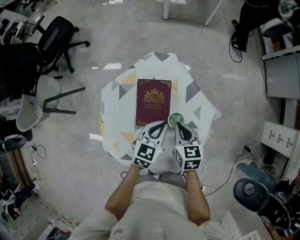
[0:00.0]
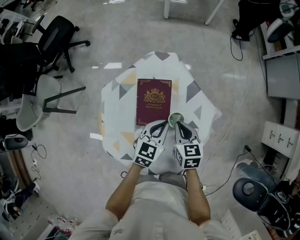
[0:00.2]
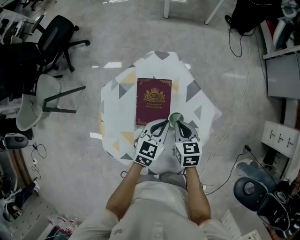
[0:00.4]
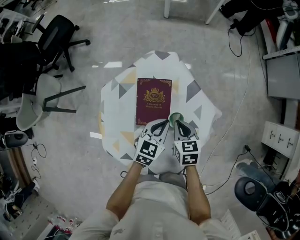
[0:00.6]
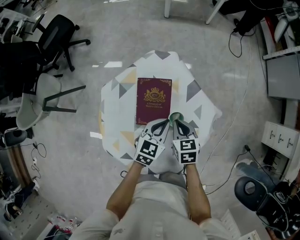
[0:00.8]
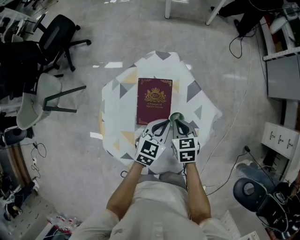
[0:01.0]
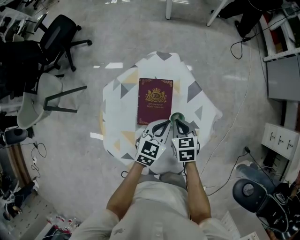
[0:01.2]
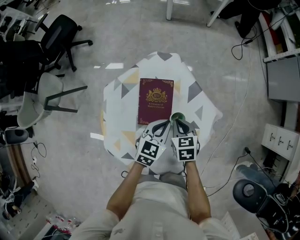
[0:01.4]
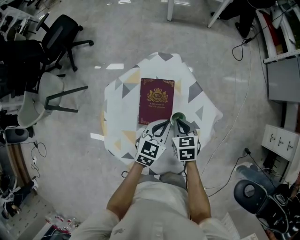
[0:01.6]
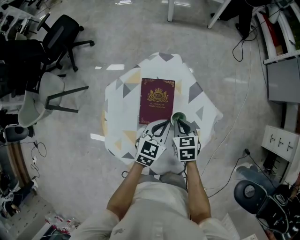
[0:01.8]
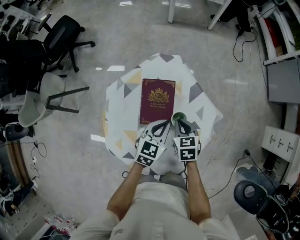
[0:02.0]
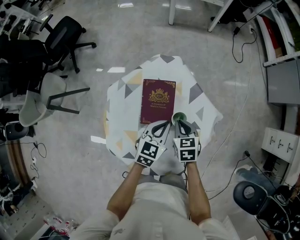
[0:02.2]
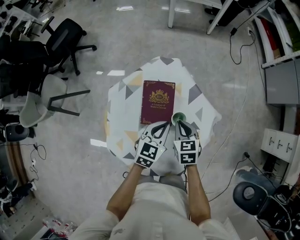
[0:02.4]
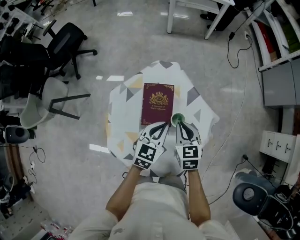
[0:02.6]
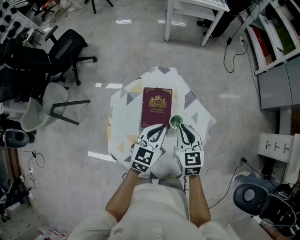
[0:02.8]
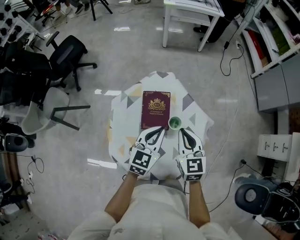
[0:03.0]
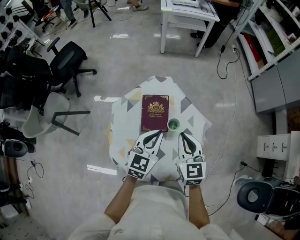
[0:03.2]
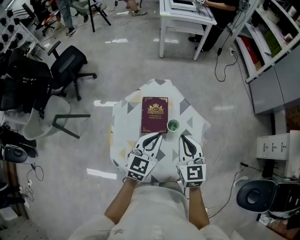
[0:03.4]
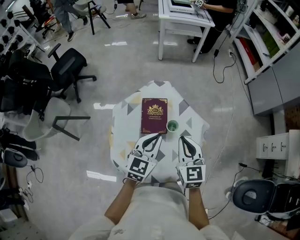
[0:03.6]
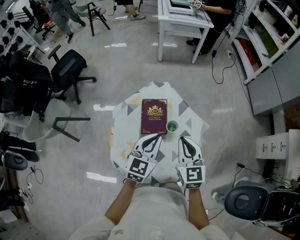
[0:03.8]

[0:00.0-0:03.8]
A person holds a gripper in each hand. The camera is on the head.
0:00.0 to 0:01.2: The grippers move only a little.
0:01.2 to 0:02.6: The two grippers go roughly 5 cm upward.
0:02.6 to 0:03.8: Both grippers travel together upward and backward, some 15 cm. The right gripper swivels roughly 20 degrees.

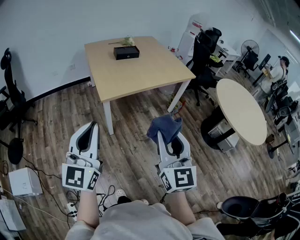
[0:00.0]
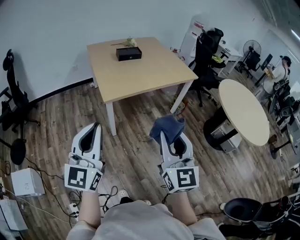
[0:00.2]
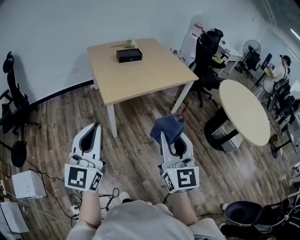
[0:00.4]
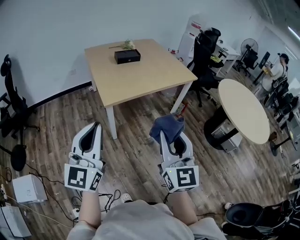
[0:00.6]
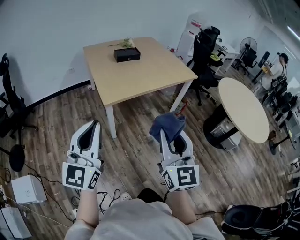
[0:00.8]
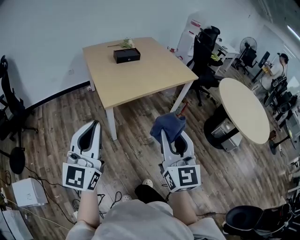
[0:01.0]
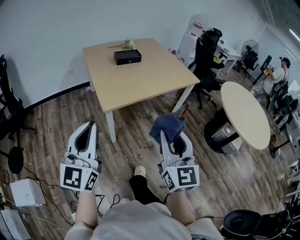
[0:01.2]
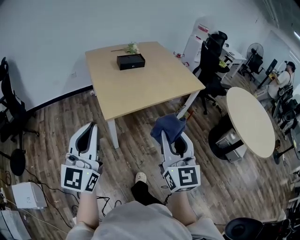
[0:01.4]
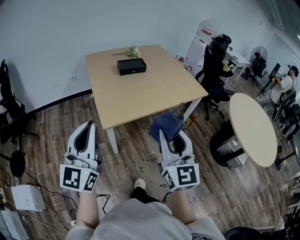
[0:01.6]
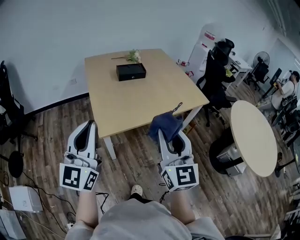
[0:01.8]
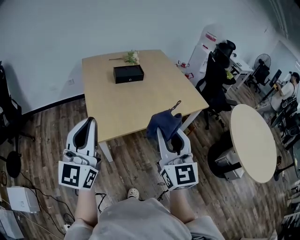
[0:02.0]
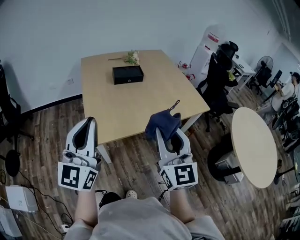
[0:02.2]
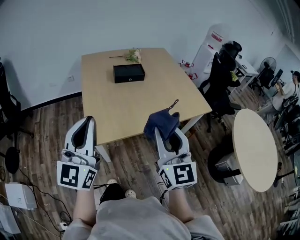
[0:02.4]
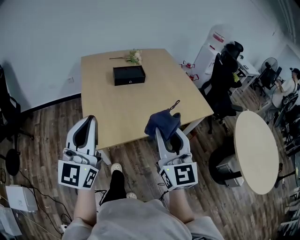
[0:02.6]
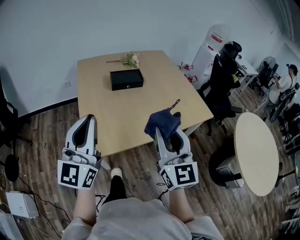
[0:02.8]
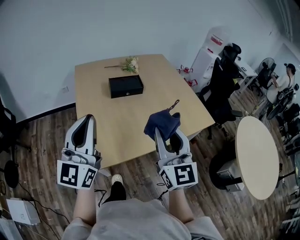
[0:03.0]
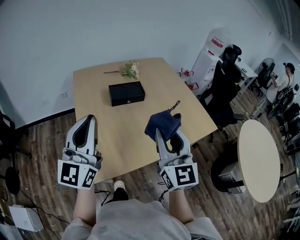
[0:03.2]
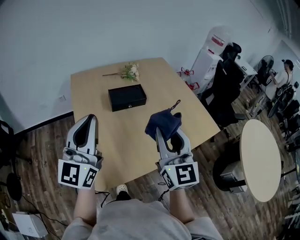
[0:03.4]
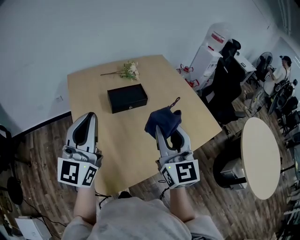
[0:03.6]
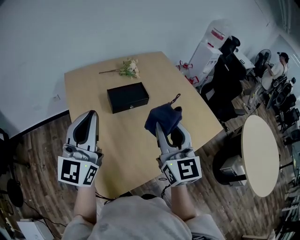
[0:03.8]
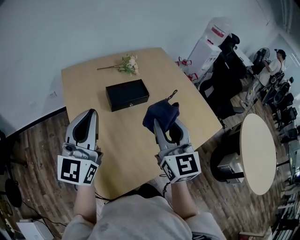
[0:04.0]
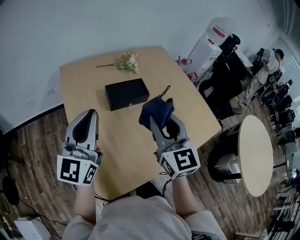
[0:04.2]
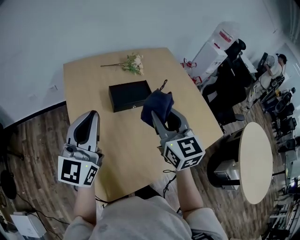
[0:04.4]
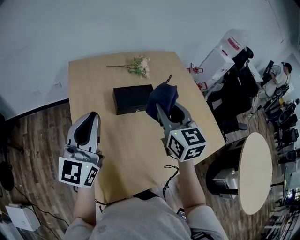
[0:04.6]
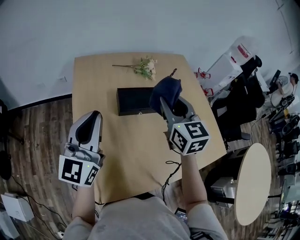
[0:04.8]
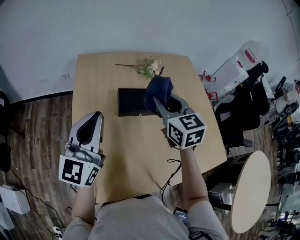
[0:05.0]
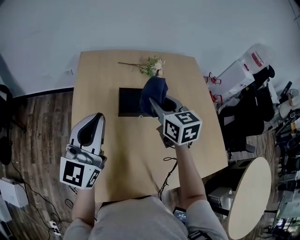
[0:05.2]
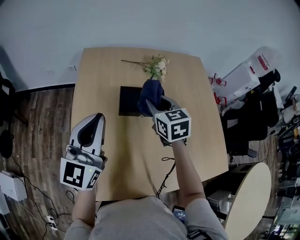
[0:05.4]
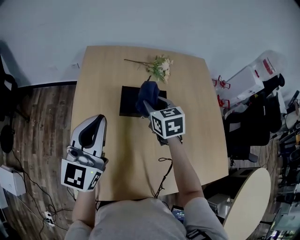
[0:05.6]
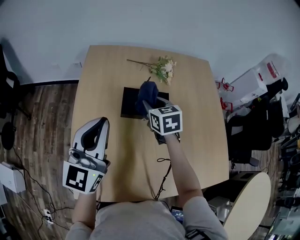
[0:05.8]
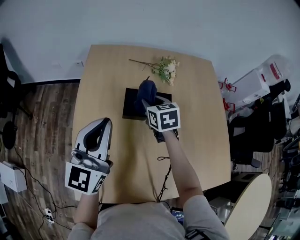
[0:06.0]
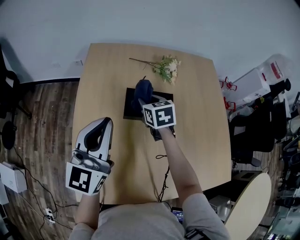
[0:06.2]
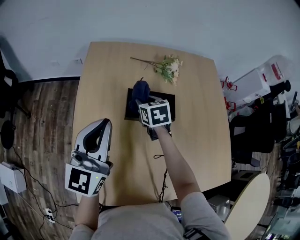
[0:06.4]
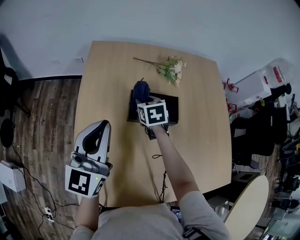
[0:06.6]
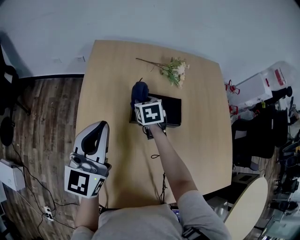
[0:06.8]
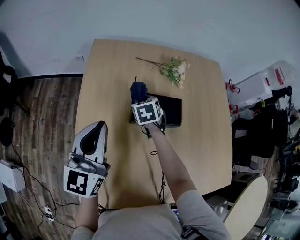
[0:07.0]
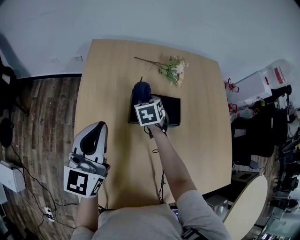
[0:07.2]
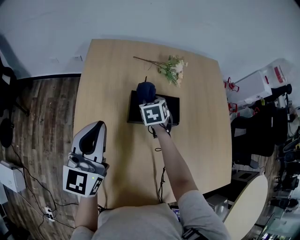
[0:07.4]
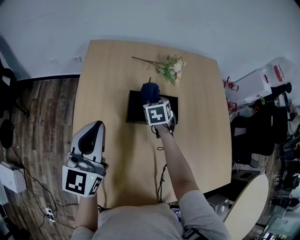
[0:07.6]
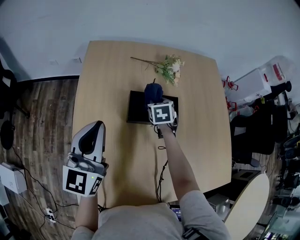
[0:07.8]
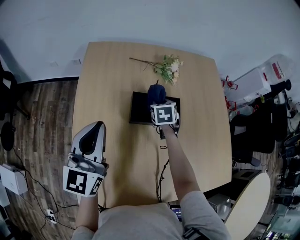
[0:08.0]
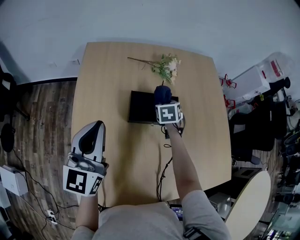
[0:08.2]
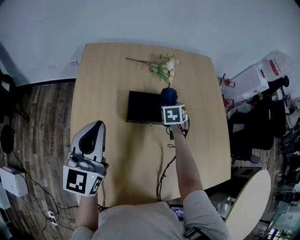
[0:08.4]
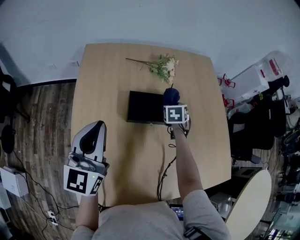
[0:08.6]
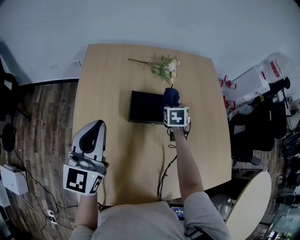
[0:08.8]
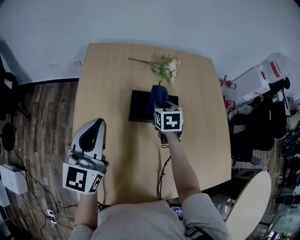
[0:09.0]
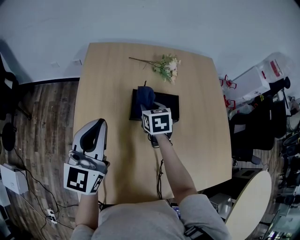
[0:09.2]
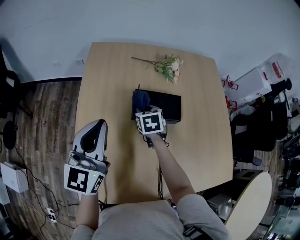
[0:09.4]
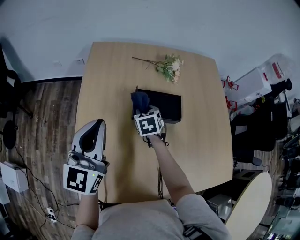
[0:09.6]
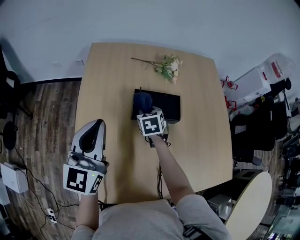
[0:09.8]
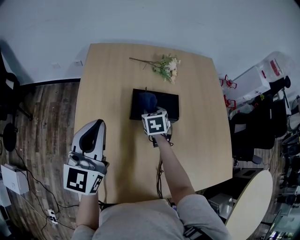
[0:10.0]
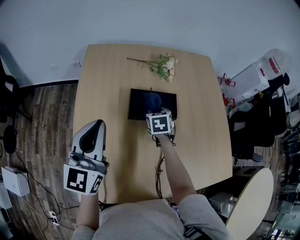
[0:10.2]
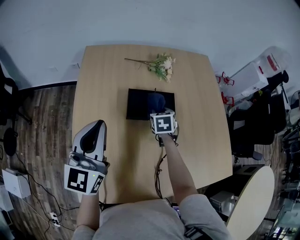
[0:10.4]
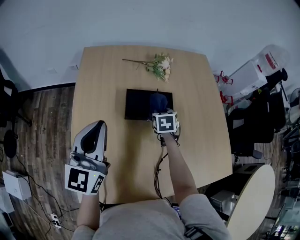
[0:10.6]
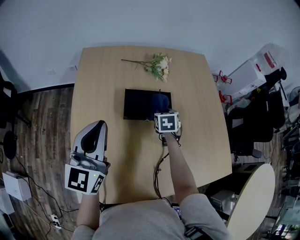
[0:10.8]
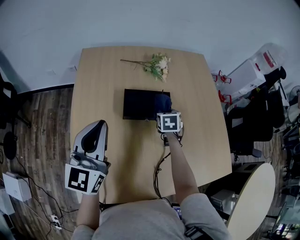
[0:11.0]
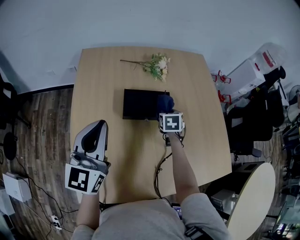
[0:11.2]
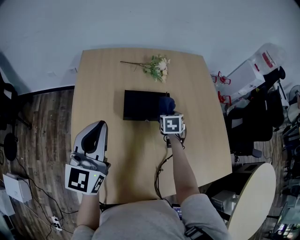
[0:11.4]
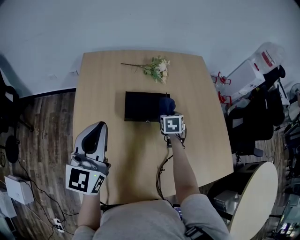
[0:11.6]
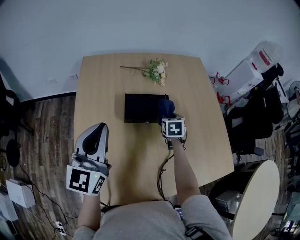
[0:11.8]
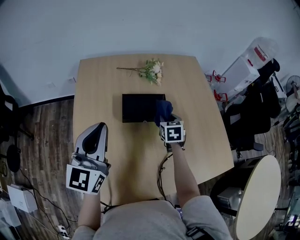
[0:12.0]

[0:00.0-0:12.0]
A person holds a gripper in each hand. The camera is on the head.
0:00.0 to 0:01.6: The two grippers go roughly 20 cm forward.
0:01.6 to 0:03.0: Both grippers move forward, about 30 cm.
0:03.0 to 0:04.4: The grippers both shift forward by roughly 25 cm.
0:04.4 to 0:06.0: The left gripper travels forward and to the right by about 10 cm. Meanwhile the right gripper is displaced forward and downward by approximately 30 cm, and swivels roughly 40 degrees.
0:06.0 to 0:07.6: The right gripper moves downward and forward, some 10 cm. Meanwhile the left gripper moves roughly 10 cm.
0:07.6 to 0:09.0: The right gripper travels to the right by approximately 5 cm.
0:09.0 to 0:10.4: The right gripper travels downward by about 5 cm, and travels to the left and back again, approximately 10 cm each way.
0:10.4 to 0:12.0: The right gripper is displaced to the right by roughly 10 cm.

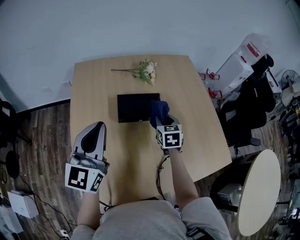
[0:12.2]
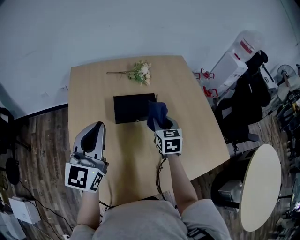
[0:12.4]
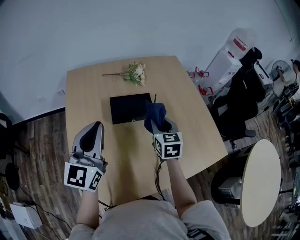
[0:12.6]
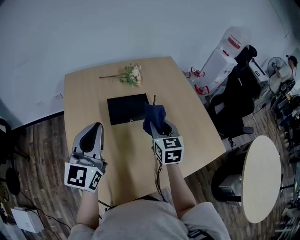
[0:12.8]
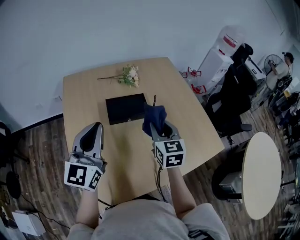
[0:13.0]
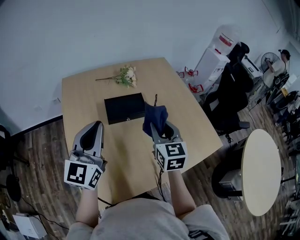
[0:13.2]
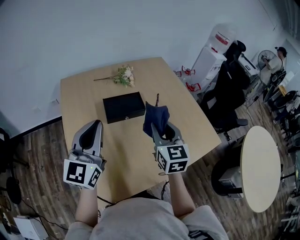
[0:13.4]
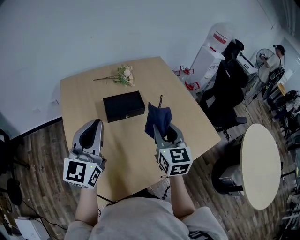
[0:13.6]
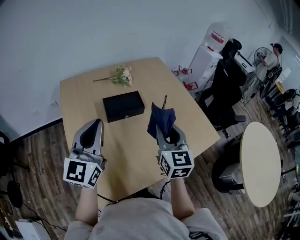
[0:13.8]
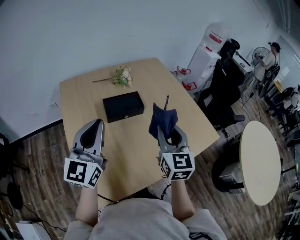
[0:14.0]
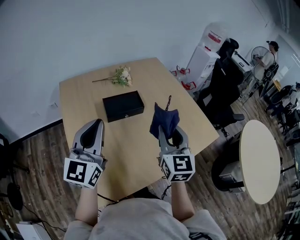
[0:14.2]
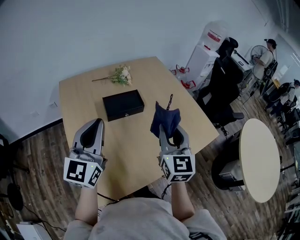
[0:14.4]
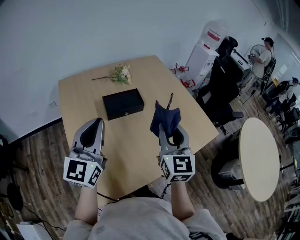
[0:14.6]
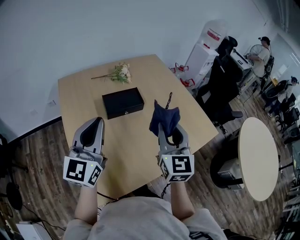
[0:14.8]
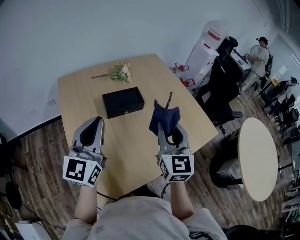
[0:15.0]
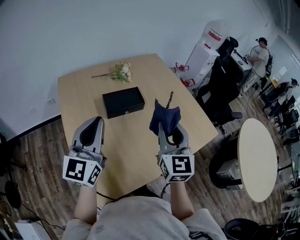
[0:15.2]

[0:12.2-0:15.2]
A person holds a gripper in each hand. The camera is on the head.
0:12.2 to 0:13.8: The left gripper is displaced backward by roughly 5 cm. Meanwhile the right gripper shifts some 30 cm backward and upward, and swivels about 30 degrees.
0:13.8 to 0:15.2: The grippers make only small movements.

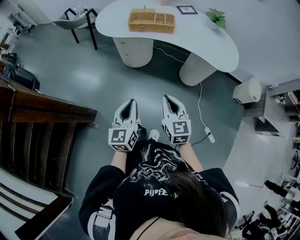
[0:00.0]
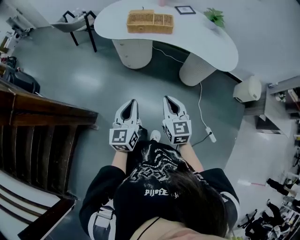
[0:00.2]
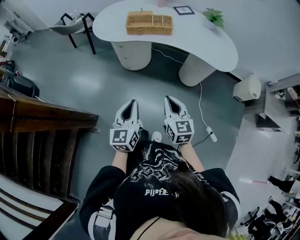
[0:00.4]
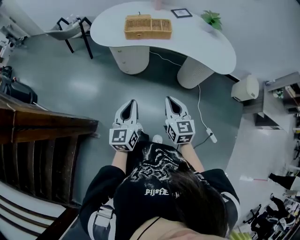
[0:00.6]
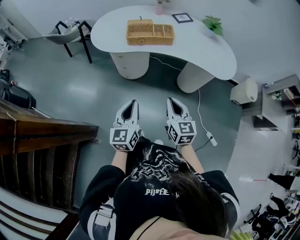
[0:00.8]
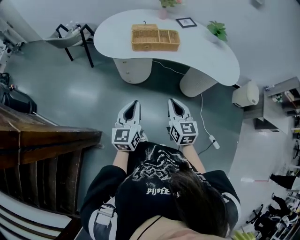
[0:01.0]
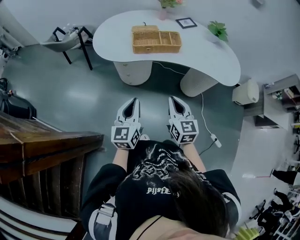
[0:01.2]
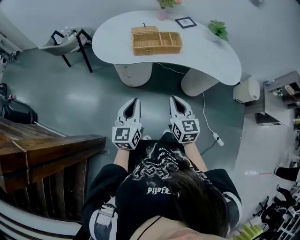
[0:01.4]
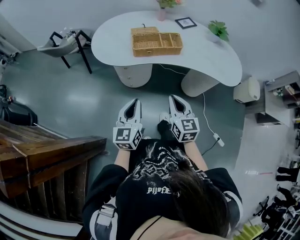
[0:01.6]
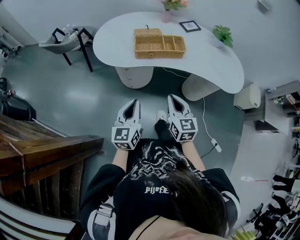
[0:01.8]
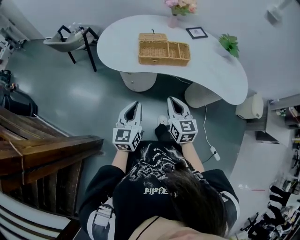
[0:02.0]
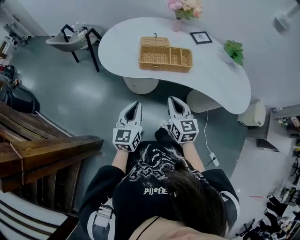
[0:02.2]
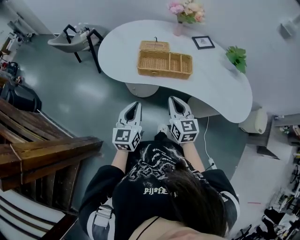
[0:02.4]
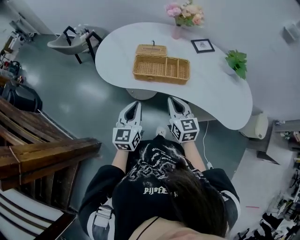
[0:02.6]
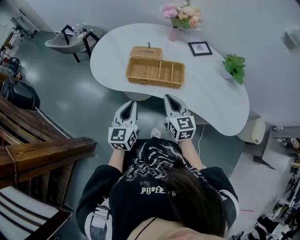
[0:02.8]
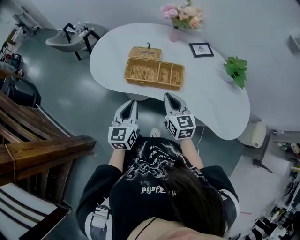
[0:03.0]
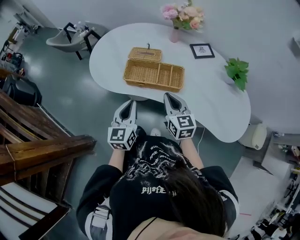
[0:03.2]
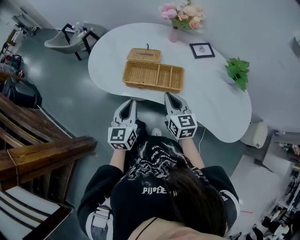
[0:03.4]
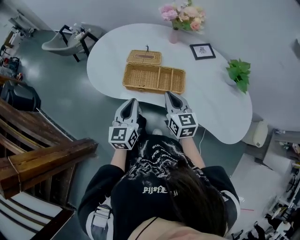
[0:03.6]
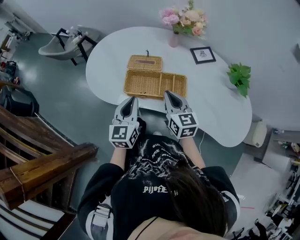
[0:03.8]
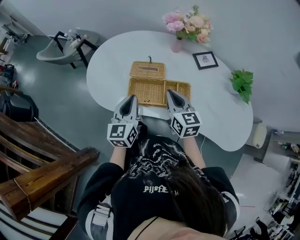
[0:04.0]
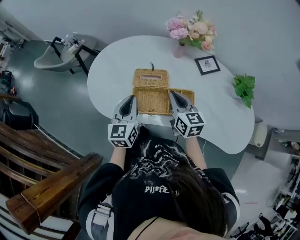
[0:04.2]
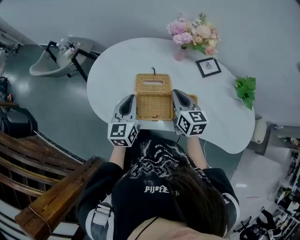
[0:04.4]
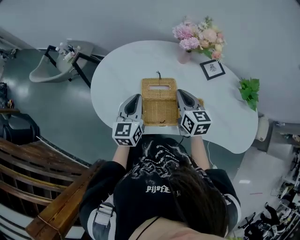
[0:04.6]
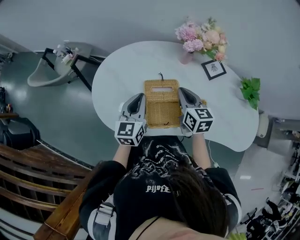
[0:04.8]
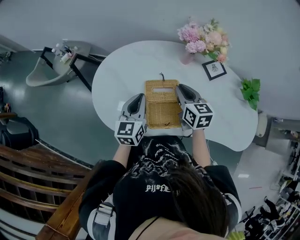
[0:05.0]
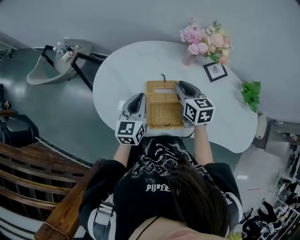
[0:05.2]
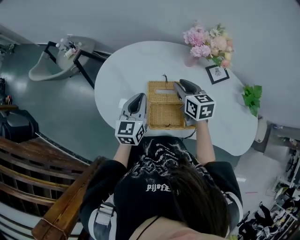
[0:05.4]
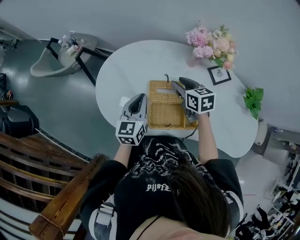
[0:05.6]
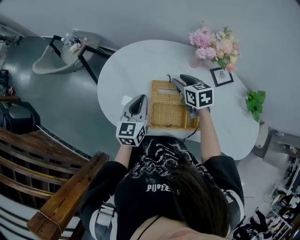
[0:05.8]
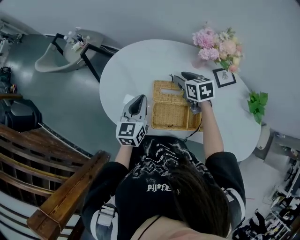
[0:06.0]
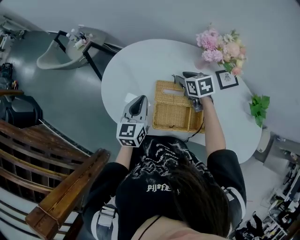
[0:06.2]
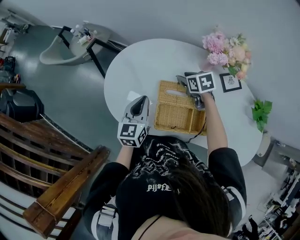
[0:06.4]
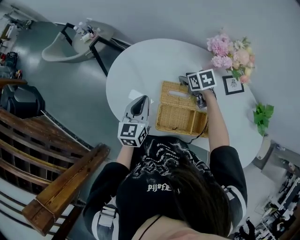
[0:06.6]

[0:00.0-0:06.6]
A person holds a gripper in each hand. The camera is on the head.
0:00.0 to 0:01.6: The grippers both shift forward and to the left by approximately 25 cm.
0:01.6 to 0:03.2: The two grippers go roughly 30 cm forward and to the right.
0:03.2 to 0:05.0: Both grippers move forward, about 30 cm.
0:05.0 to 0:06.6: The right gripper moves forward and downward, some 15 cm, swivels about 40 degrees, and opens its fingers.
